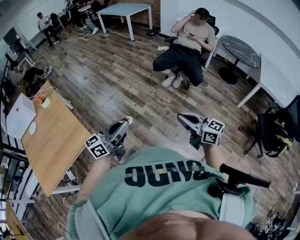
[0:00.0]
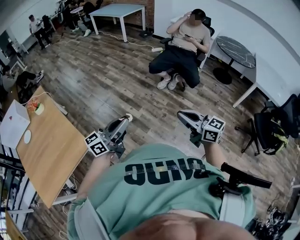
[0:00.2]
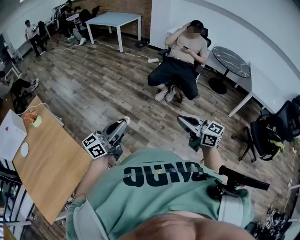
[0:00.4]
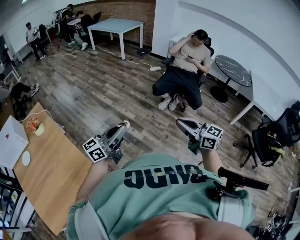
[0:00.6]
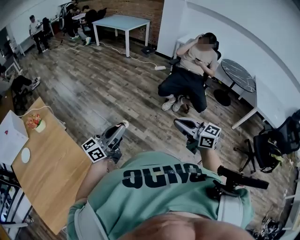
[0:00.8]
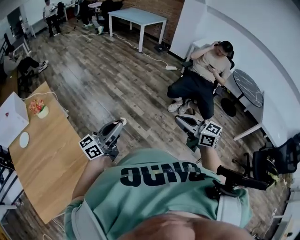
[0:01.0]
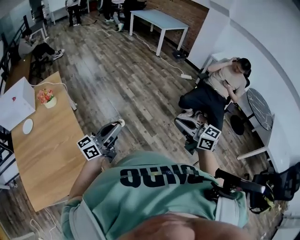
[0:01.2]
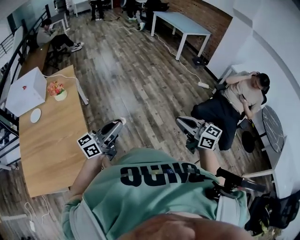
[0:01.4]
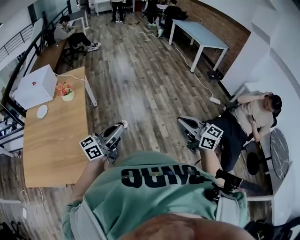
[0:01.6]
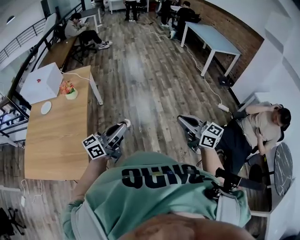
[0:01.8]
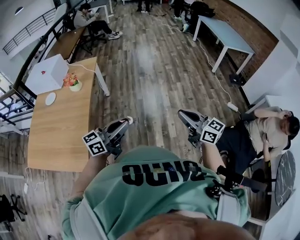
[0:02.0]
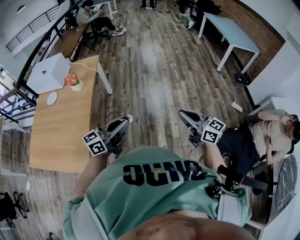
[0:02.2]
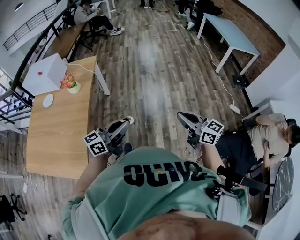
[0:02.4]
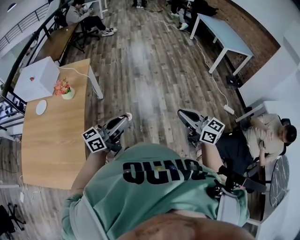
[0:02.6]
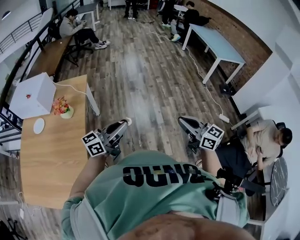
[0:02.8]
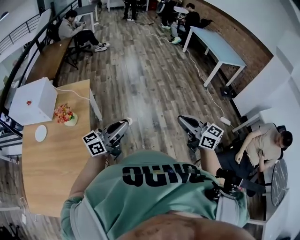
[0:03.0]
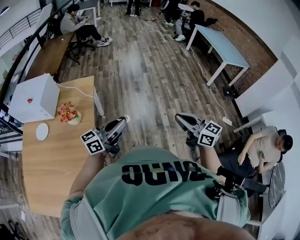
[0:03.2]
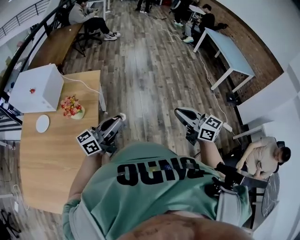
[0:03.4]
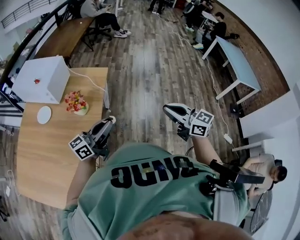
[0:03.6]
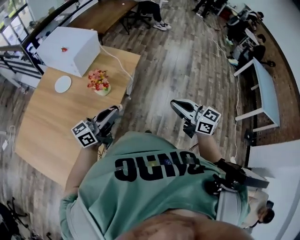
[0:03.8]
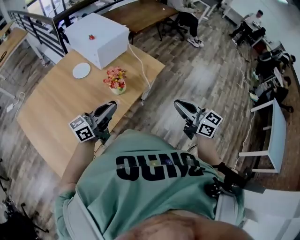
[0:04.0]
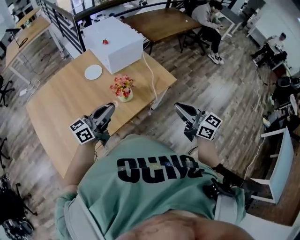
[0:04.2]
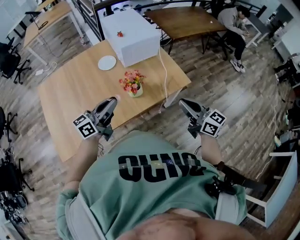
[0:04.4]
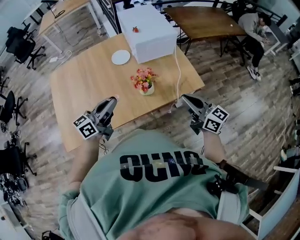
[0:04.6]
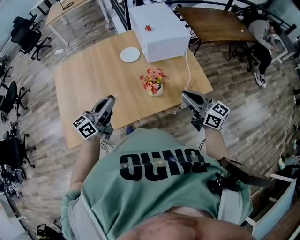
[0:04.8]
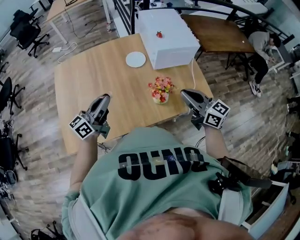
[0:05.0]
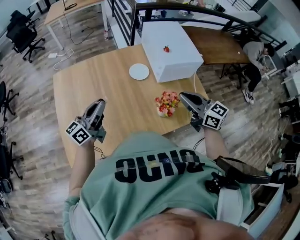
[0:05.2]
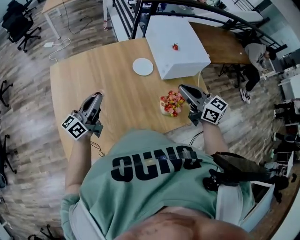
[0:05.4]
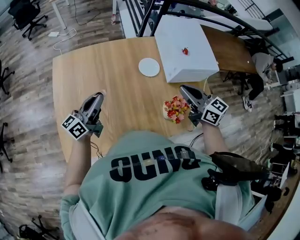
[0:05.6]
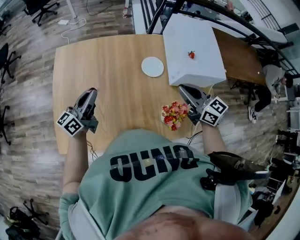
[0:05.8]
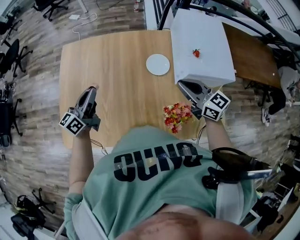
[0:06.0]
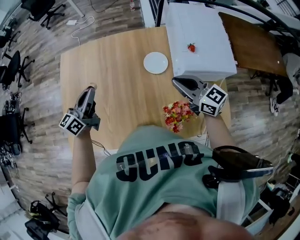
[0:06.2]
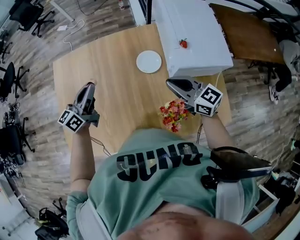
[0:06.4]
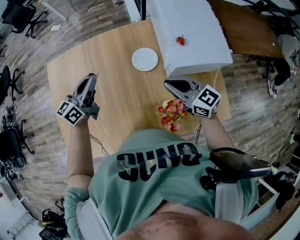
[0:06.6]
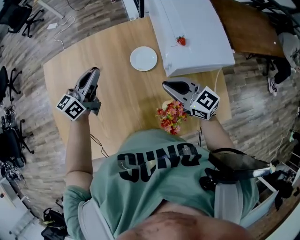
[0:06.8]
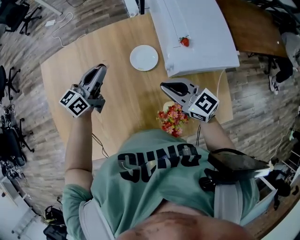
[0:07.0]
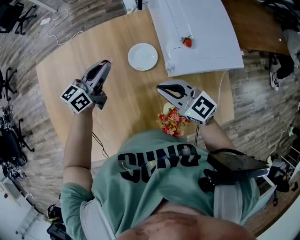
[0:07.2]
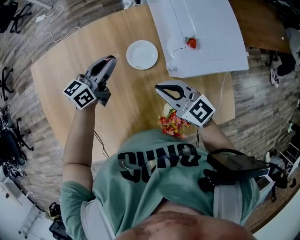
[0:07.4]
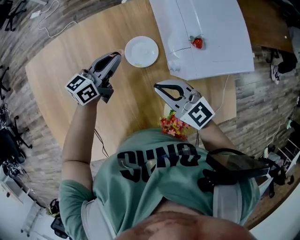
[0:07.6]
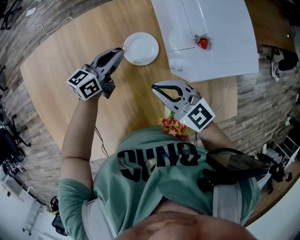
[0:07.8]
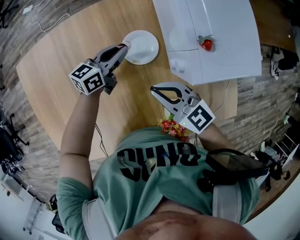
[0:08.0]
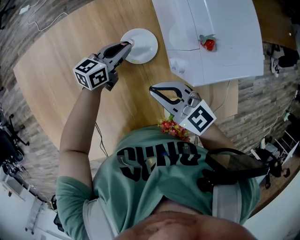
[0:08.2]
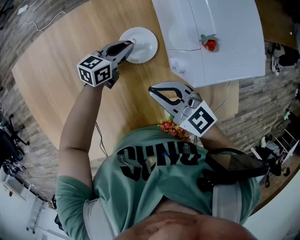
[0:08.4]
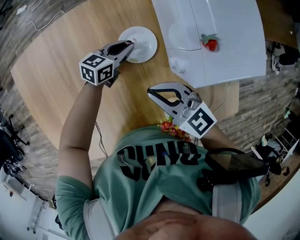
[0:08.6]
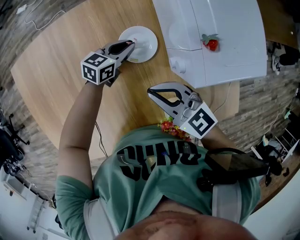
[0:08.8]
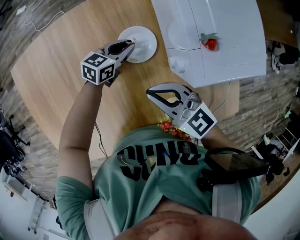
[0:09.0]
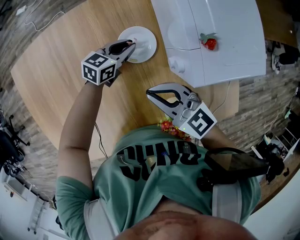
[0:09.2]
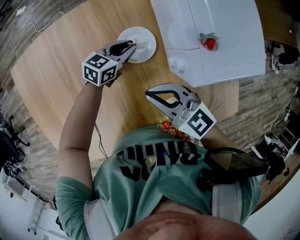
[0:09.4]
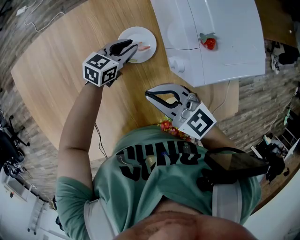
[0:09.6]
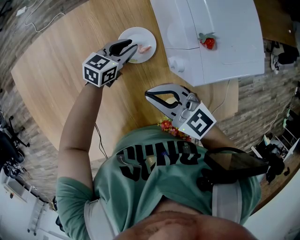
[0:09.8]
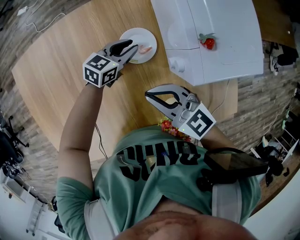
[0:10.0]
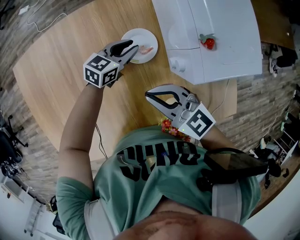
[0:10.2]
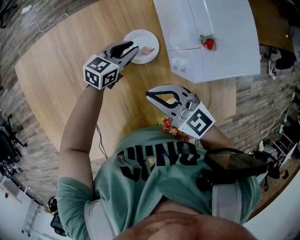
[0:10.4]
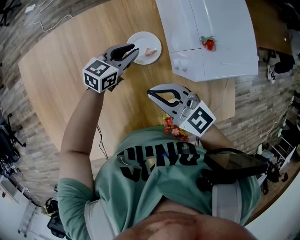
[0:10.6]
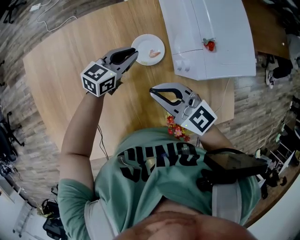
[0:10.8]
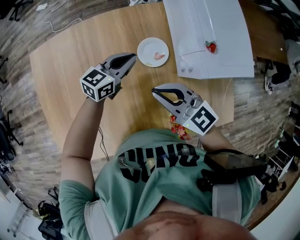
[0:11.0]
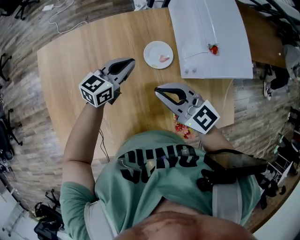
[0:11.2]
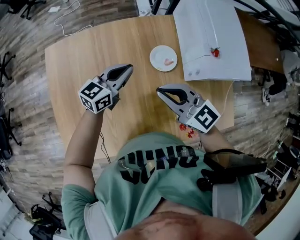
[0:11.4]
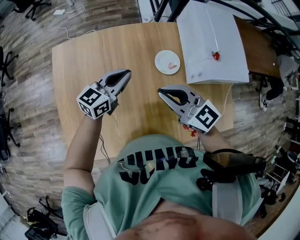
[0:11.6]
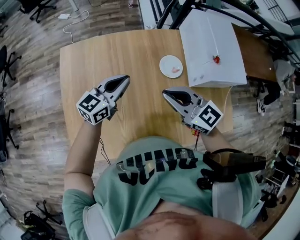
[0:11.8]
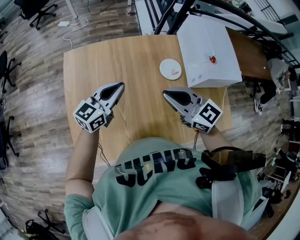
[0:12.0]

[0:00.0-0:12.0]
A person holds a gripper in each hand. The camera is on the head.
0:00.0 to 0:01.6: The two grippers travel together, about 50 cm. The left gripper swivels some 30 degrees. Meanwhile the right gripper changes its angle by approximately 30 degrees.
0:01.6 to 0:03.0: The two grippers go approximately 35 cm forward.
0:03.0 to 0:04.4: The left gripper shifts by roughly 35 cm, and swivels about 80 degrees. The right gripper shifts by approximately 60 cm, and changes its angle by roughly 70 degrees.
0:04.4 to 0:06.0: The left gripper shifts by roughly 40 cm, and rotates about 40 degrees, while the right gripper moves about 50 cm, and swivels some 30 degrees.
0:06.0 to 0:07.6: The left gripper travels to the right, forward and downward by roughly 35 cm, and turns by about 30 degrees. Meanwhile the right gripper is displaced downward and forward by roughly 15 cm.
0:07.6 to 0:09.0: The left gripper moves downward and to the right, some 15 cm, and rotates some 20 degrees.
0:09.0 to 0:10.4: The grippers stay close to where they were, moving slightly.
0:10.4 to 0:12.0: The right gripper shifts some 25 cm to the left, upward and backward. Meanwhile the left gripper goes approximately 40 cm to the left, upward and backward, and swivels about 30 degrees.

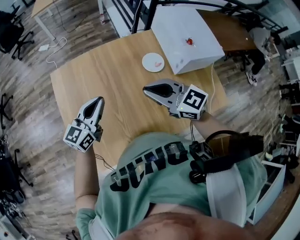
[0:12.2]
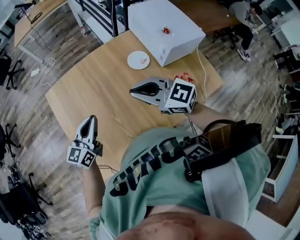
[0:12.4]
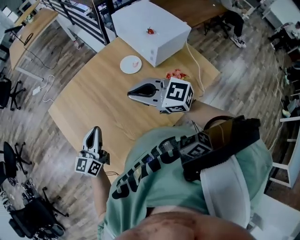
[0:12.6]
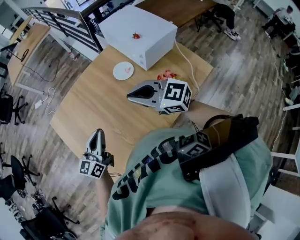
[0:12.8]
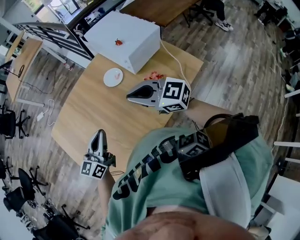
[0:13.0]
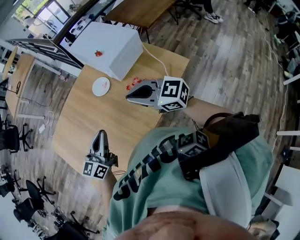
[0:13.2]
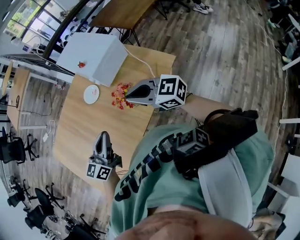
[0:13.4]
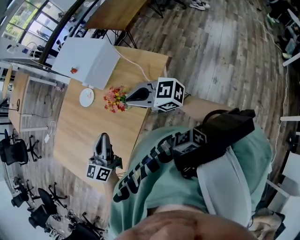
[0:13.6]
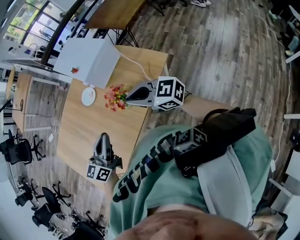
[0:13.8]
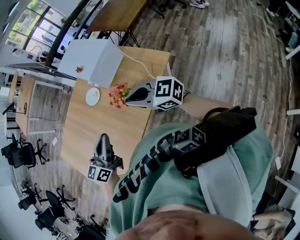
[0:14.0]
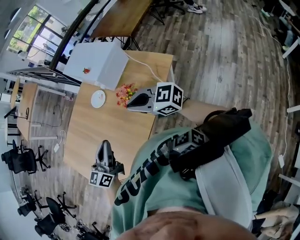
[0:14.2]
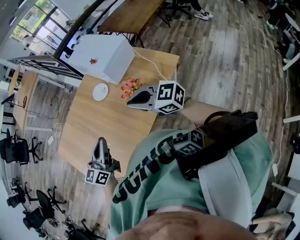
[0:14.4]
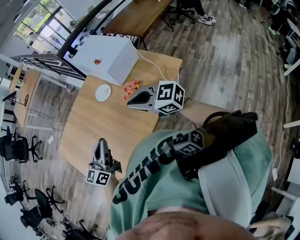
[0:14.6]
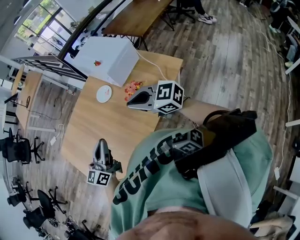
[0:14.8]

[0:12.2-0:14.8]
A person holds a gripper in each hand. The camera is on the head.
0:12.2 to 0:13.4: The two grippers go roughly 40 cm to the right and backward. The right gripper changes its angle by some 20 degrees, while the left gripper turns by roughly 20 degrees.
0:13.4 to 0:14.8: The grippers both shift to the left by some 10 cm.

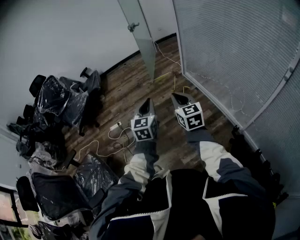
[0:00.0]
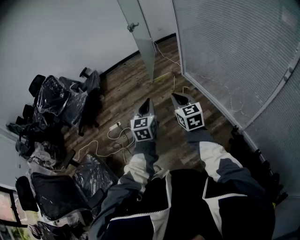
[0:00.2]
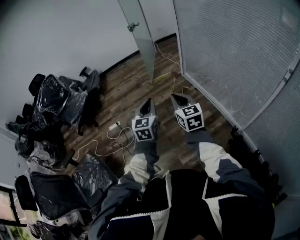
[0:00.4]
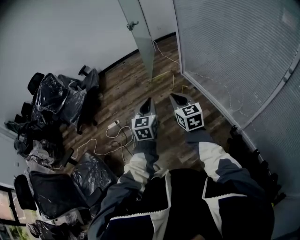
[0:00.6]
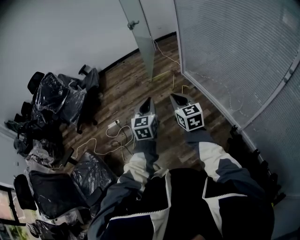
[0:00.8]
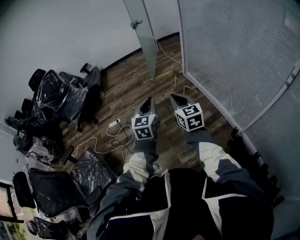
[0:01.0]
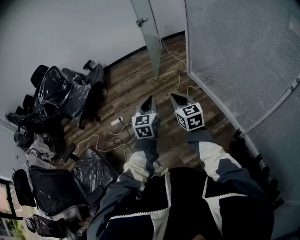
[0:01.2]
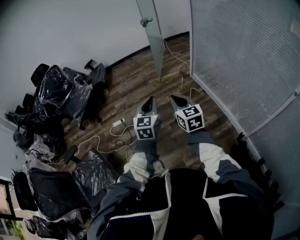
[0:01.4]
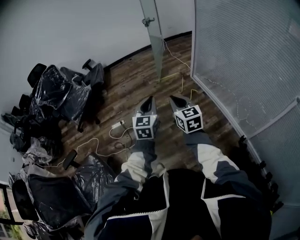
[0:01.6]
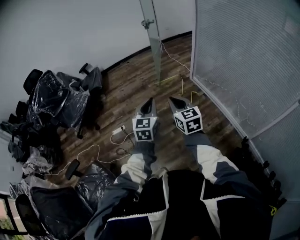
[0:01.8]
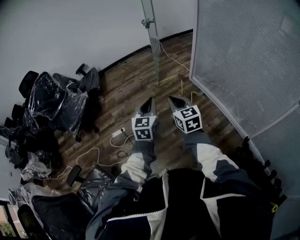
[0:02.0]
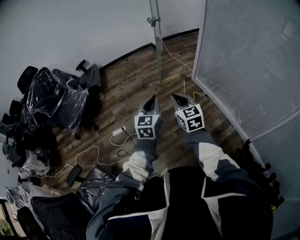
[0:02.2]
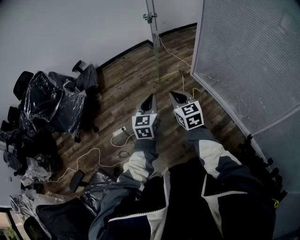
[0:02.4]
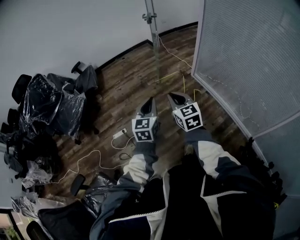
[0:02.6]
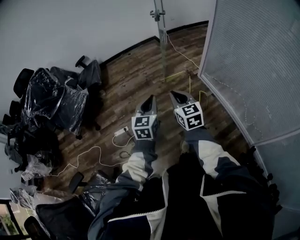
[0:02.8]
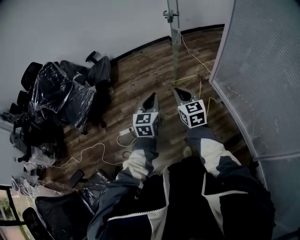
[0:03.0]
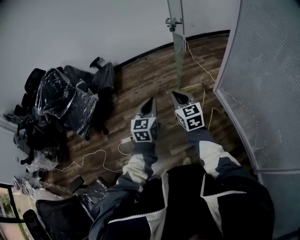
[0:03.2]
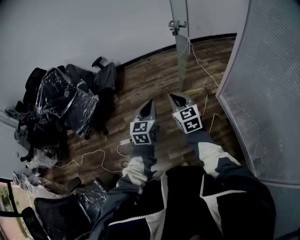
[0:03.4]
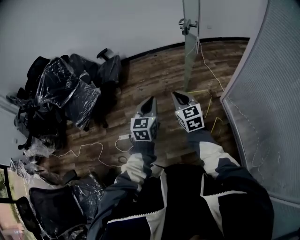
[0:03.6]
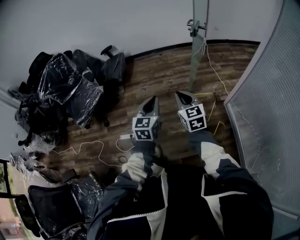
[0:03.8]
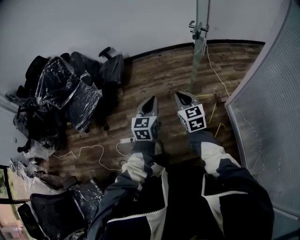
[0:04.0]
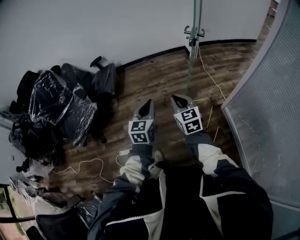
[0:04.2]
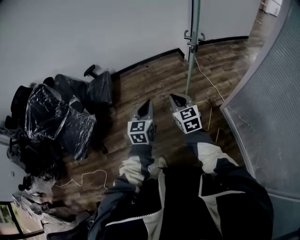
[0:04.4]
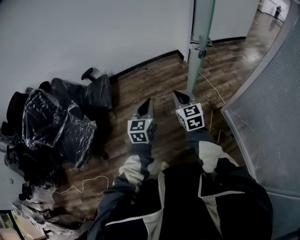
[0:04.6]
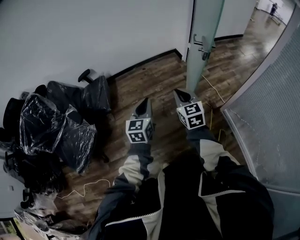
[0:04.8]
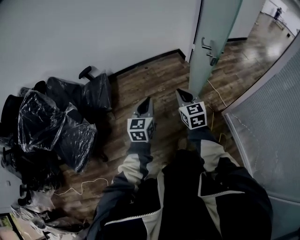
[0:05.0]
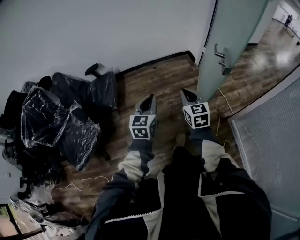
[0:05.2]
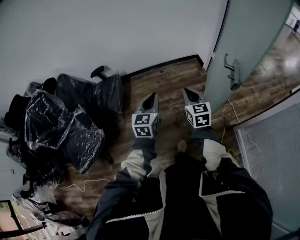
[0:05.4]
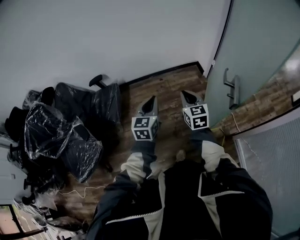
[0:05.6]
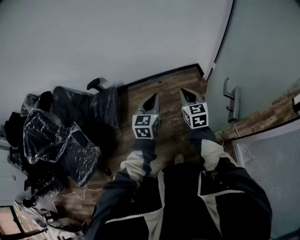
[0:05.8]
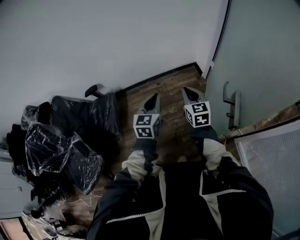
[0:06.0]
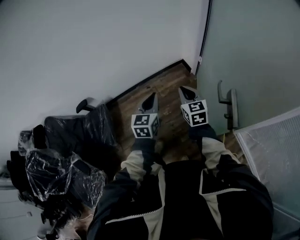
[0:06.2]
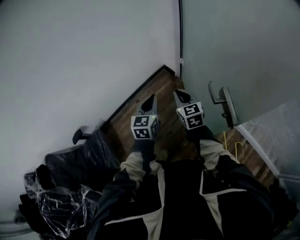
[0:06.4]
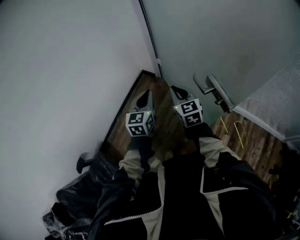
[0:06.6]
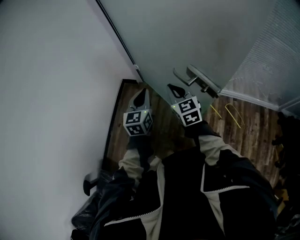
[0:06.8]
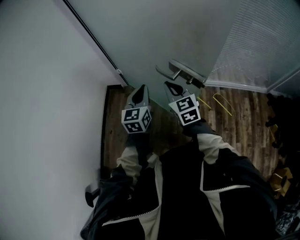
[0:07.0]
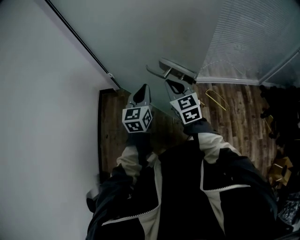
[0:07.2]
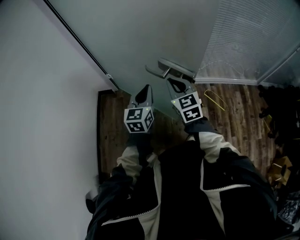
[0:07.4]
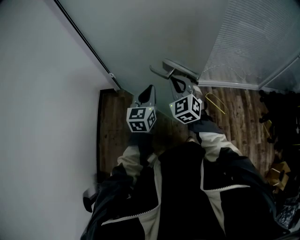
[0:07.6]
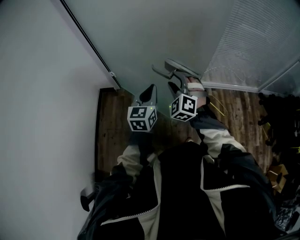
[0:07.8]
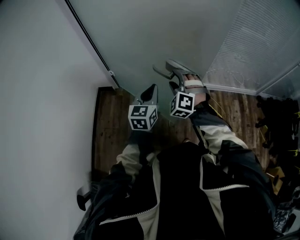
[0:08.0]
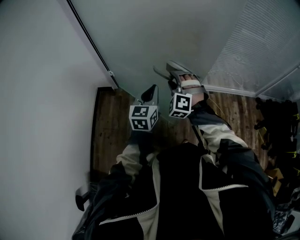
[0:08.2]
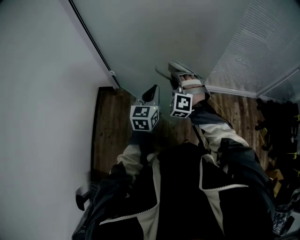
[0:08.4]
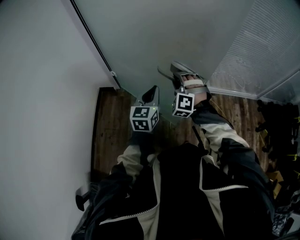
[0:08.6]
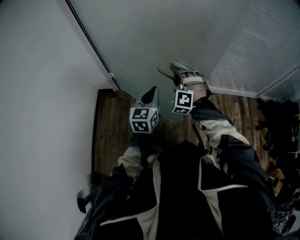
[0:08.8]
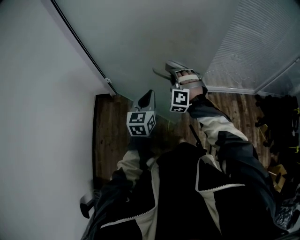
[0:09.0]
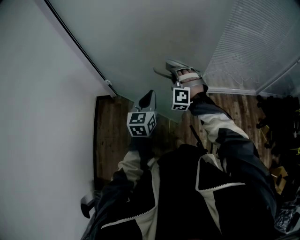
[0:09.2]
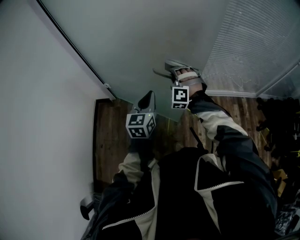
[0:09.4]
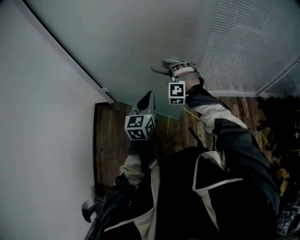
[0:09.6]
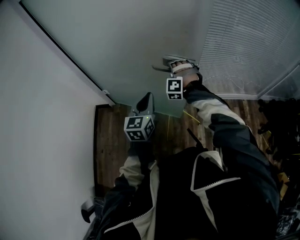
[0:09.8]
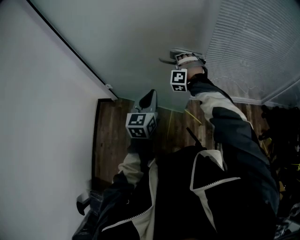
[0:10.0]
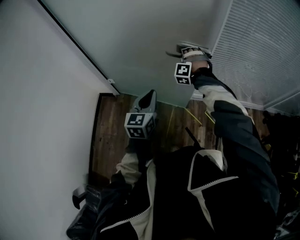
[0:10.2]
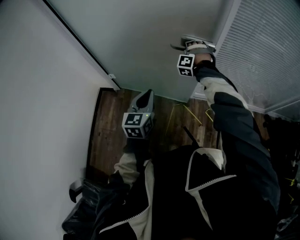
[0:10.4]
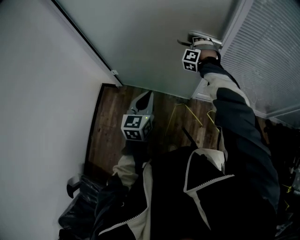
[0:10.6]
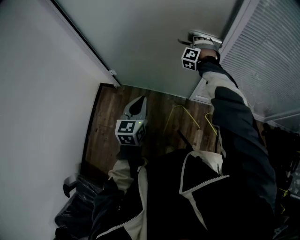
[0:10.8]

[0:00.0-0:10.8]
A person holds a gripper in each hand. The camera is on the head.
0:00.0 to 0:01.6: The two grippers go about 15 cm to the left and forward.
0:01.6 to 0:03.0: The two grippers go approximately 30 cm forward.
0:03.0 to 0:04.6: Both grippers are carried forward, about 40 cm.
0:04.6 to 0:06.2: Both grippers are carried forward, some 50 cm.
0:06.2 to 0:07.8: The left gripper moves roughly 25 cm, and swivels roughly 60 degrees; the right gripper moves about 20 cm, swivels roughly 70 degrees, and opens its fingers.
0:07.8 to 0:09.2: The right gripper travels forward by roughly 10 cm, and turns by about 20 degrees, while the left gripper moves roughly 5 cm.
0:09.2 to 0:10.8: The left gripper goes some 10 cm forward. Meanwhile the right gripper shifts roughly 35 cm forward.
